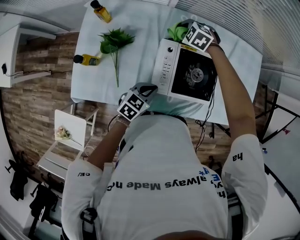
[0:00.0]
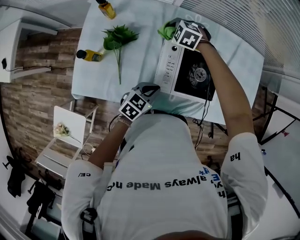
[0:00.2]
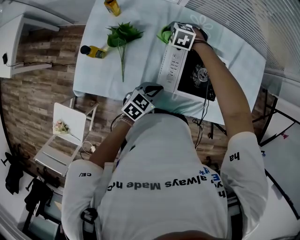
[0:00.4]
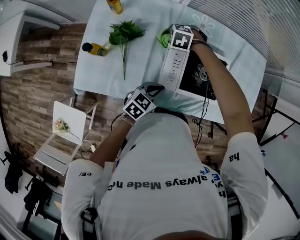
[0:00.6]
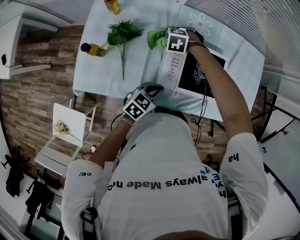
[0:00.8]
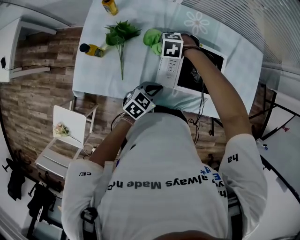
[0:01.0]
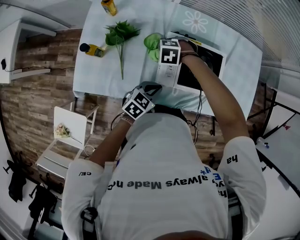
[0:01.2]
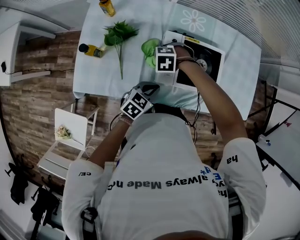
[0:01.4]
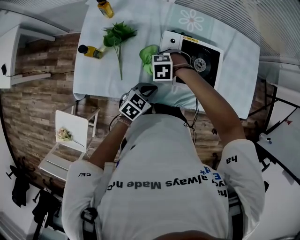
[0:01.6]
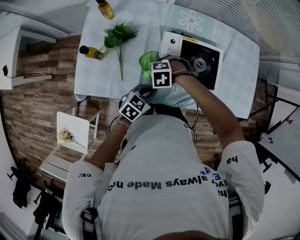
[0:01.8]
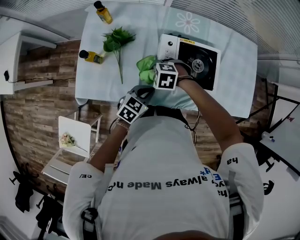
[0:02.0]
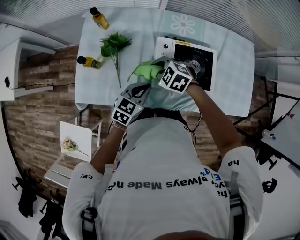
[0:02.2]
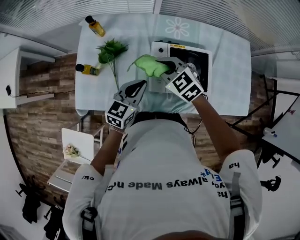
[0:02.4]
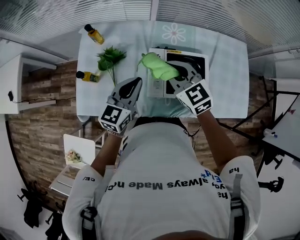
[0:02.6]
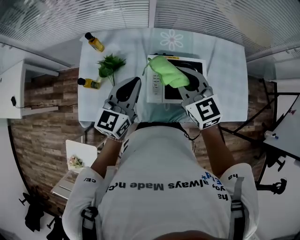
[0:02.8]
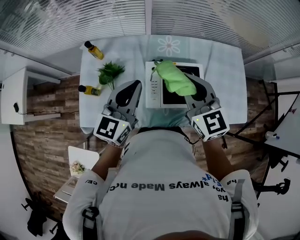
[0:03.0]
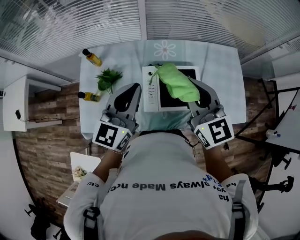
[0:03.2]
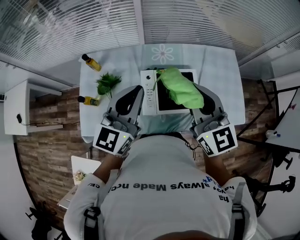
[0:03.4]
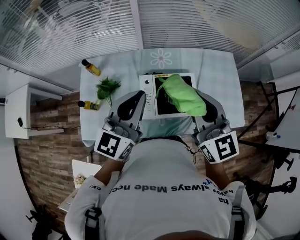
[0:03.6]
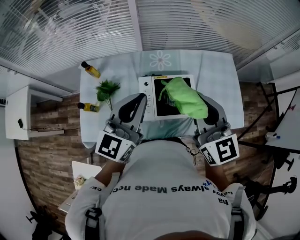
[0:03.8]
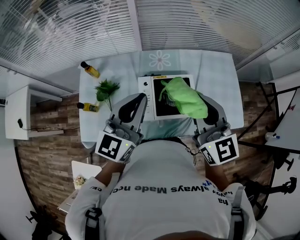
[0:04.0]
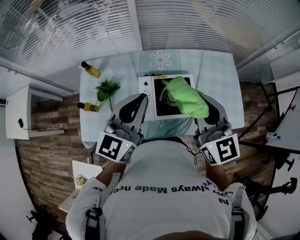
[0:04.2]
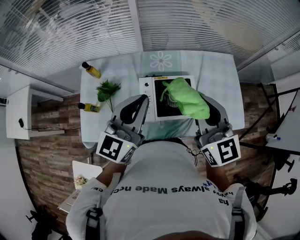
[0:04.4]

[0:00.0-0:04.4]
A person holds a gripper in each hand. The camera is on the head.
0:00.0 to 0:01.4: The right gripper changes place by roughly 25 cm, and rotates roughly 20 degrees.
0:01.4 to 0:03.0: The grippers both shift upward by about 30 cm. The left gripper points its fingers some 30 degrees further upward, while the right gripper points its fingers some 60 degrees further upward.
0:03.0 to 0:04.4: The left gripper travels upward and to the right by approximately 10 cm, while the right gripper travels to the right and upward by some 10 cm.

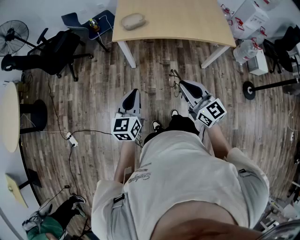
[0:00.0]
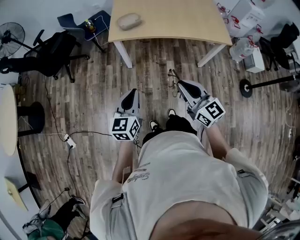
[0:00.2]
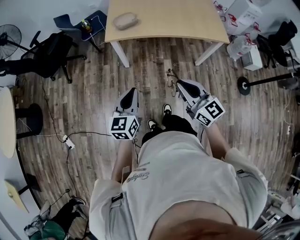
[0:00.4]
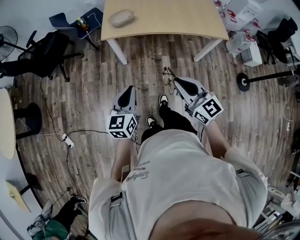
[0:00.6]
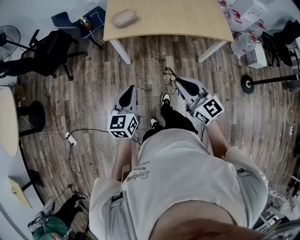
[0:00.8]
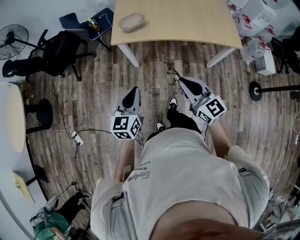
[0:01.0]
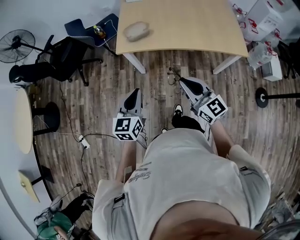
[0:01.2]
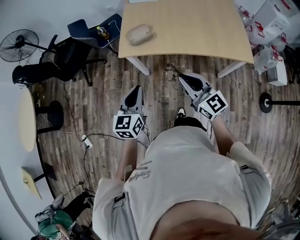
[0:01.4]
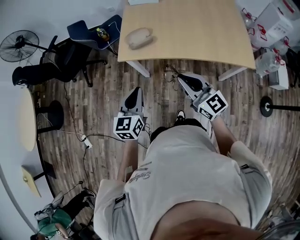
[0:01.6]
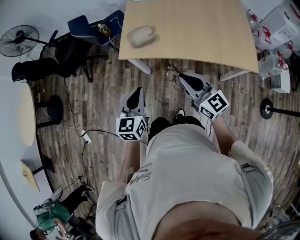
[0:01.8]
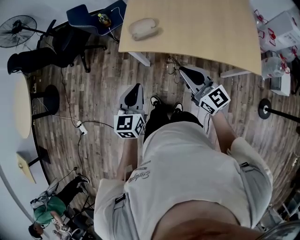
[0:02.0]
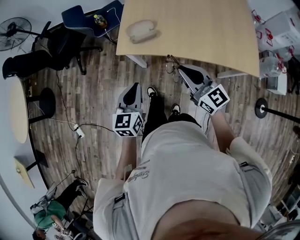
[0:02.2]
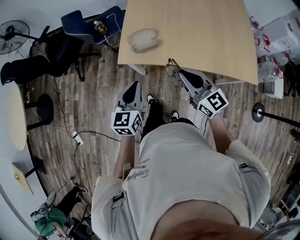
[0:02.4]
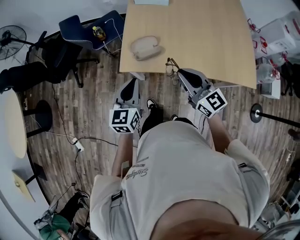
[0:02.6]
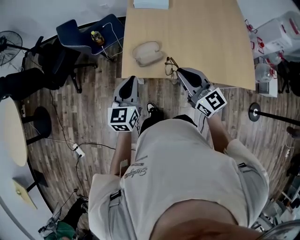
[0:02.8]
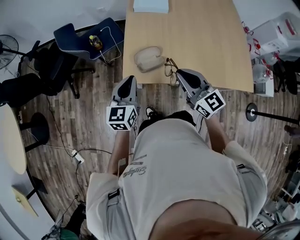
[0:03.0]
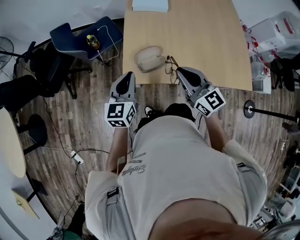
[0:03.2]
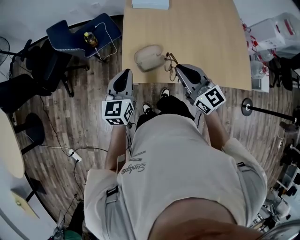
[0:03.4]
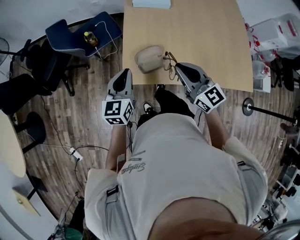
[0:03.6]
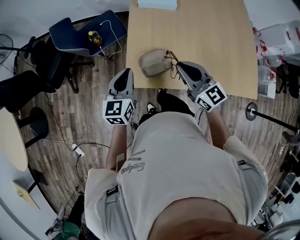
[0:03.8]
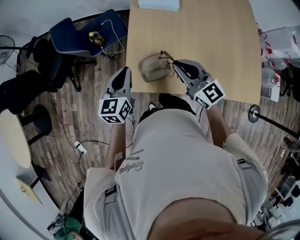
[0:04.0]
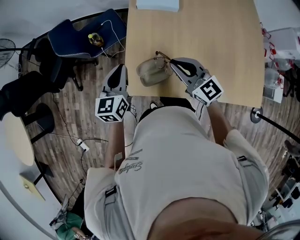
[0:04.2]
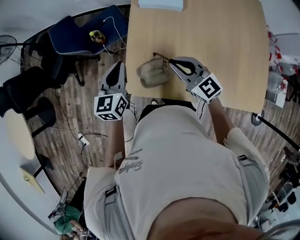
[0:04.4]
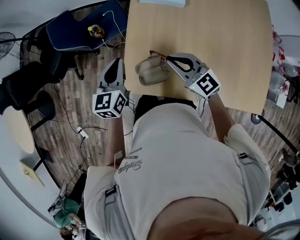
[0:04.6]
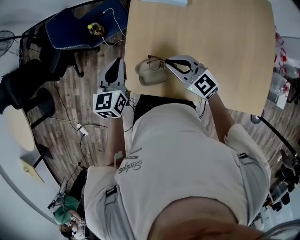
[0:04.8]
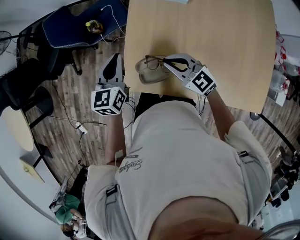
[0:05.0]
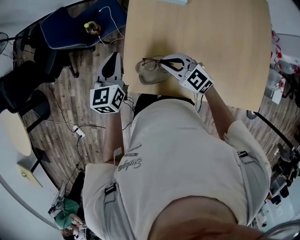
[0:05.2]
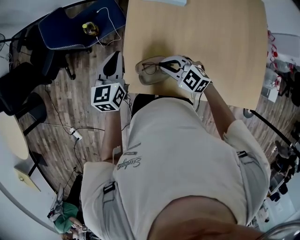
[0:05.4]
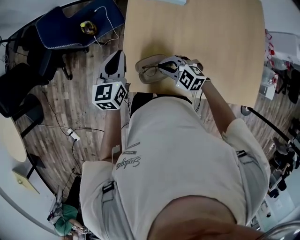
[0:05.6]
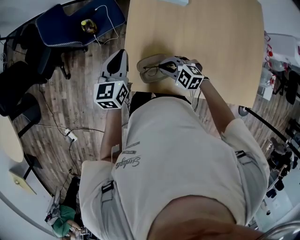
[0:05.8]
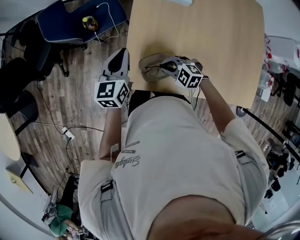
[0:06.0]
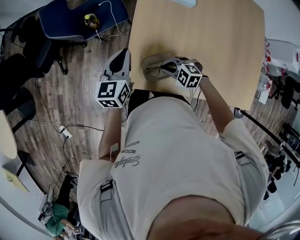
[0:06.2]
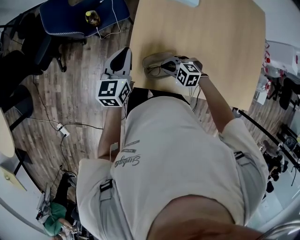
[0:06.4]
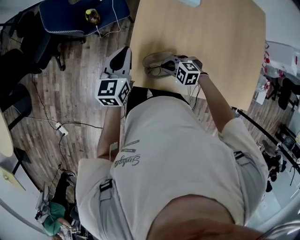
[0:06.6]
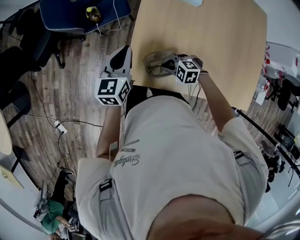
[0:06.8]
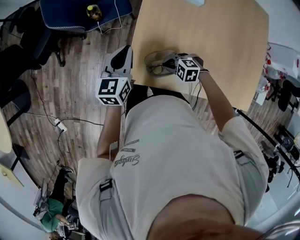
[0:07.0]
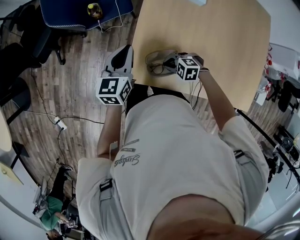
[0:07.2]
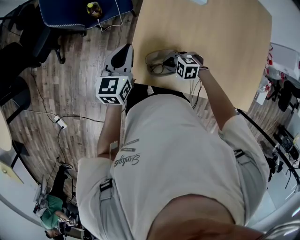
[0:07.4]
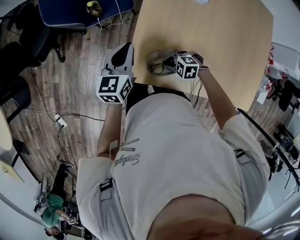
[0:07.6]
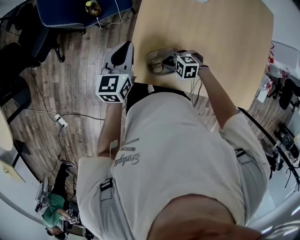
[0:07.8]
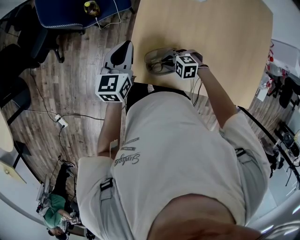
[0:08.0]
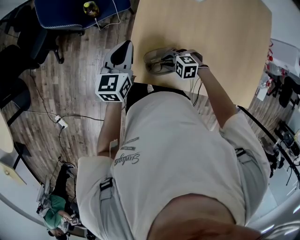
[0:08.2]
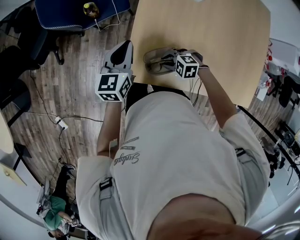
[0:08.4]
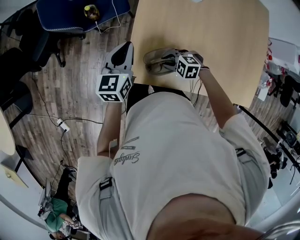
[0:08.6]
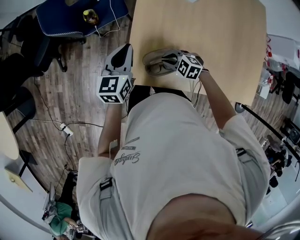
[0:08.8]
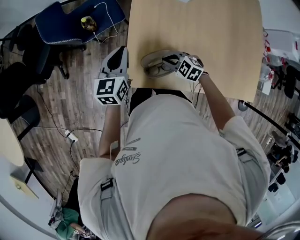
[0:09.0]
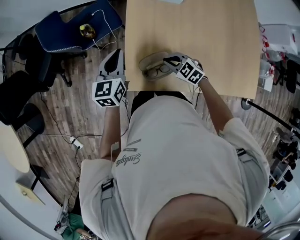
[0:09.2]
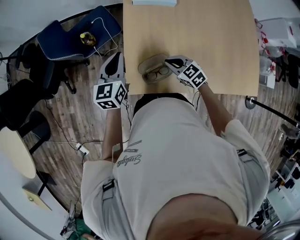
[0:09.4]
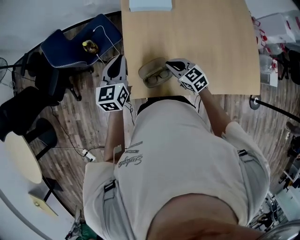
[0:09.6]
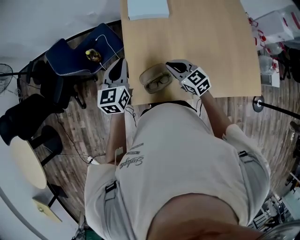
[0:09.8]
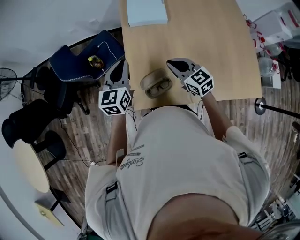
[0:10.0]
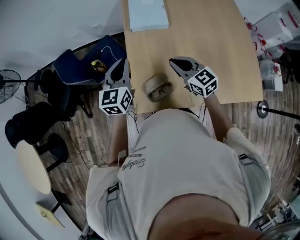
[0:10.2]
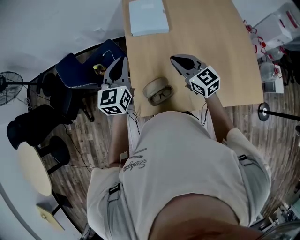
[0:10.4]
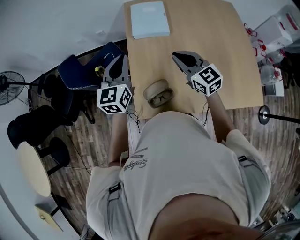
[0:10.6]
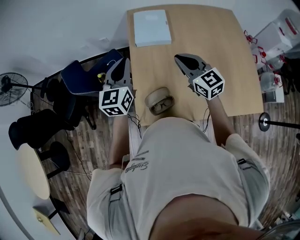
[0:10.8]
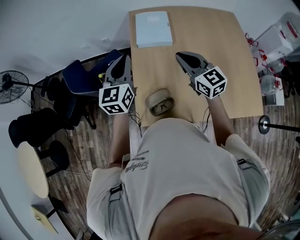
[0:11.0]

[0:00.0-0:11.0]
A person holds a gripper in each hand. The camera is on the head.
0:00.0 to 0:01.6: The right gripper moves forward, some 25 cm. The left gripper travels forward and to the right by approximately 20 cm.
0:01.6 to 0:03.2: The grippers both shift forward by approximately 30 cm.
0:03.2 to 0:04.8: The left gripper goes approximately 20 cm forward. Meanwhile the right gripper travels forward and downward by some 20 cm, and changes its angle by some 30 degrees.
0:04.8 to 0:06.2: The right gripper goes roughly 20 cm downward and to the left, and angles its fingers downward, by about 40 degrees. The left gripper moves roughly 5 cm.
0:06.2 to 0:07.8: The right gripper travels downward by some 5 cm.
0:07.8 to 0:09.4: The right gripper moves upward, roughly 10 cm, and rotates approximately 60 degrees. The left gripper moves approximately 5 cm.
0:09.4 to 0:11.0: The left gripper is displaced upward and to the right by approximately 20 cm; the right gripper heads upward, covering about 25 cm, and tilts its fingers approximately 30 degrees upward.

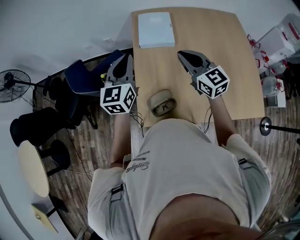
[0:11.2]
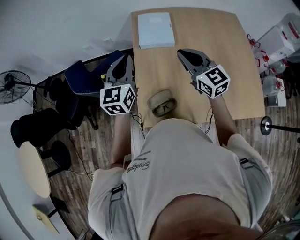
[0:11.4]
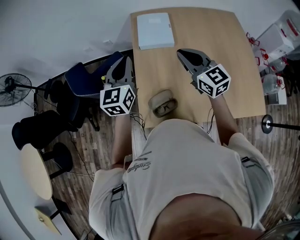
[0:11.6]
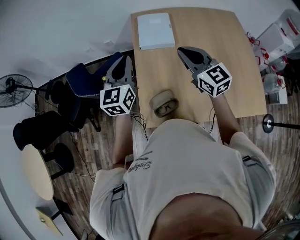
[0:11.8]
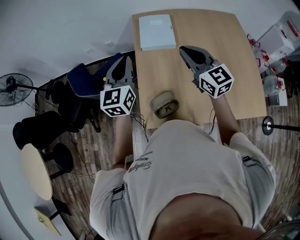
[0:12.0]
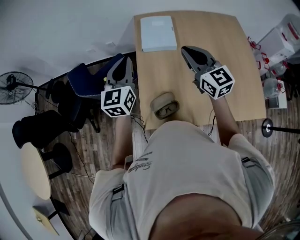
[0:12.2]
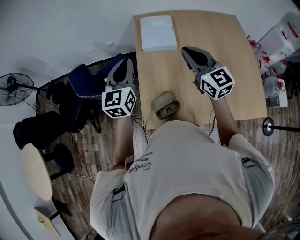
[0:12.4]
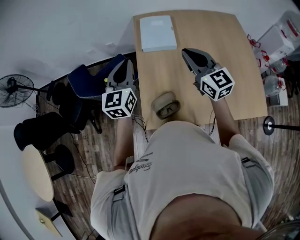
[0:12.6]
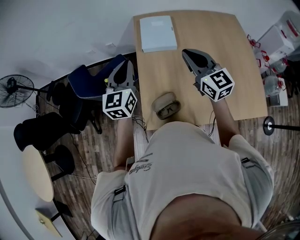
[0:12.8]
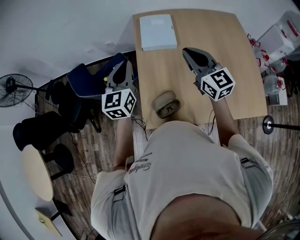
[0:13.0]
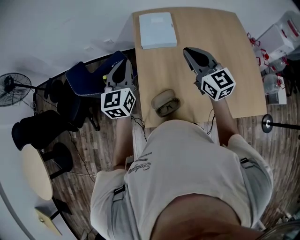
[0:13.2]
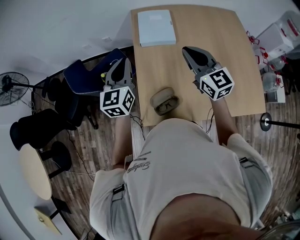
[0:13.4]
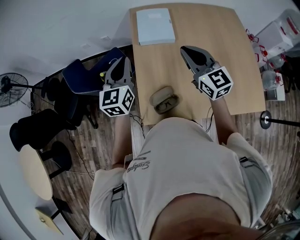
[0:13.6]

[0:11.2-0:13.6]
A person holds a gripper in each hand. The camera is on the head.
0:11.2 to 0:13.6: The grippers stay close to where they were, moving slightly.

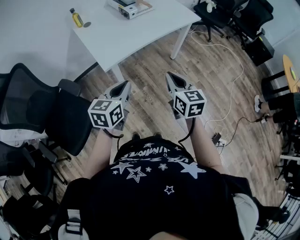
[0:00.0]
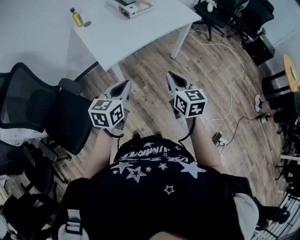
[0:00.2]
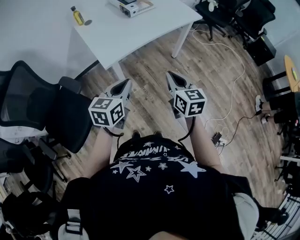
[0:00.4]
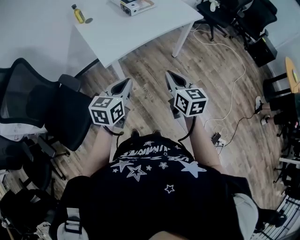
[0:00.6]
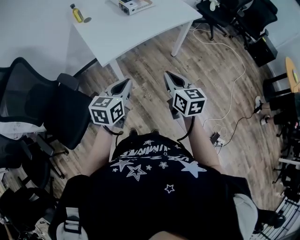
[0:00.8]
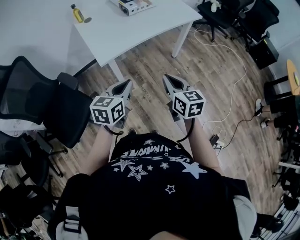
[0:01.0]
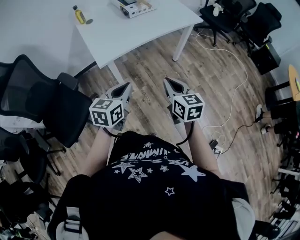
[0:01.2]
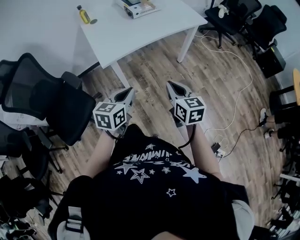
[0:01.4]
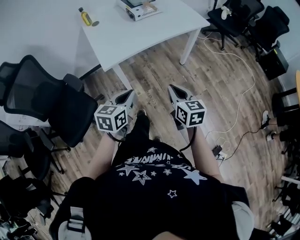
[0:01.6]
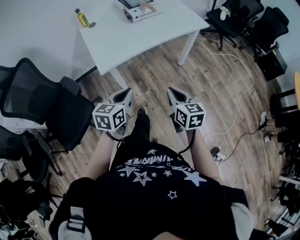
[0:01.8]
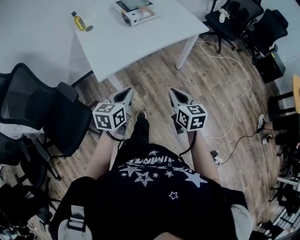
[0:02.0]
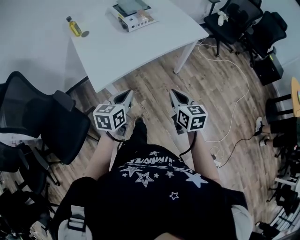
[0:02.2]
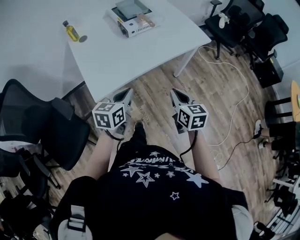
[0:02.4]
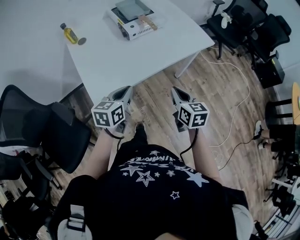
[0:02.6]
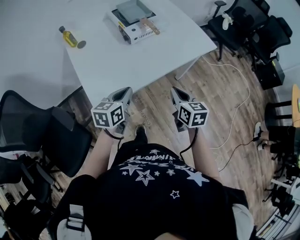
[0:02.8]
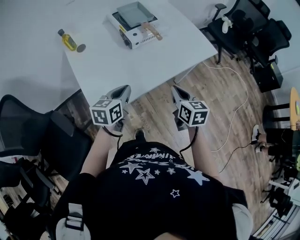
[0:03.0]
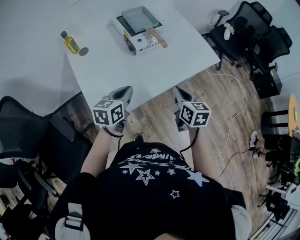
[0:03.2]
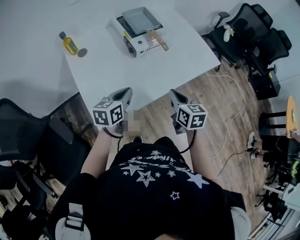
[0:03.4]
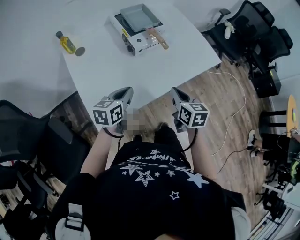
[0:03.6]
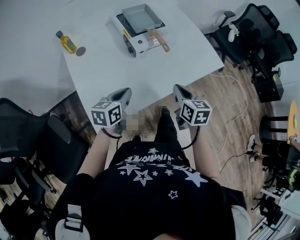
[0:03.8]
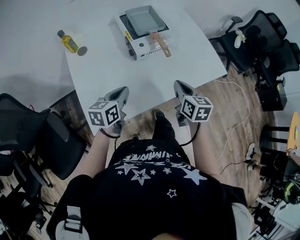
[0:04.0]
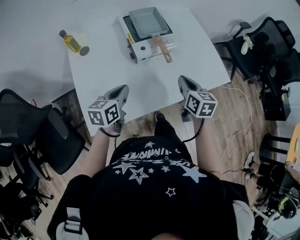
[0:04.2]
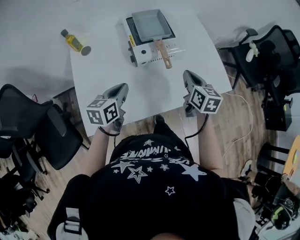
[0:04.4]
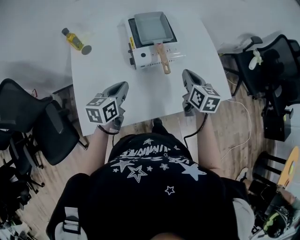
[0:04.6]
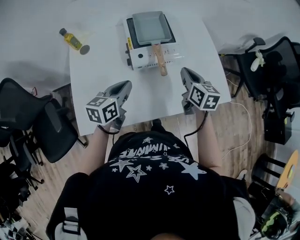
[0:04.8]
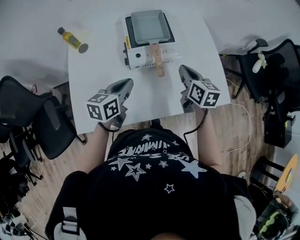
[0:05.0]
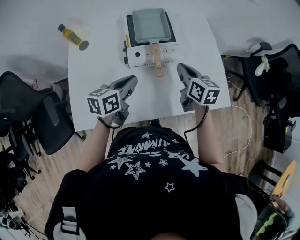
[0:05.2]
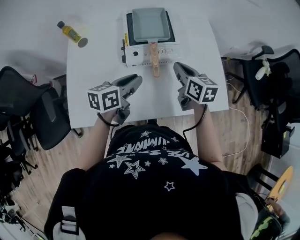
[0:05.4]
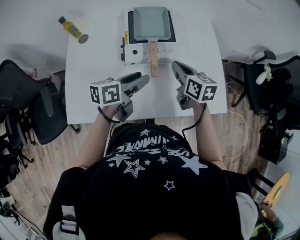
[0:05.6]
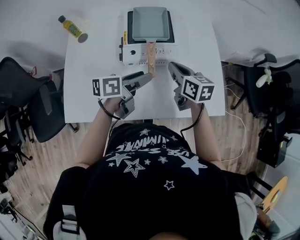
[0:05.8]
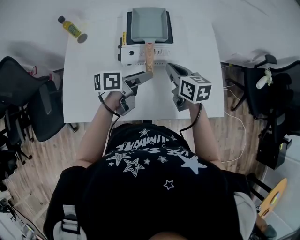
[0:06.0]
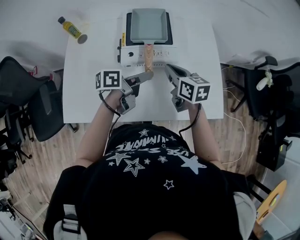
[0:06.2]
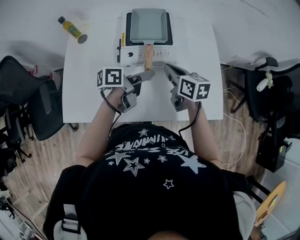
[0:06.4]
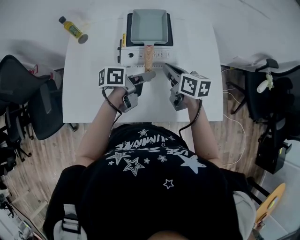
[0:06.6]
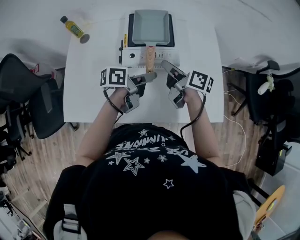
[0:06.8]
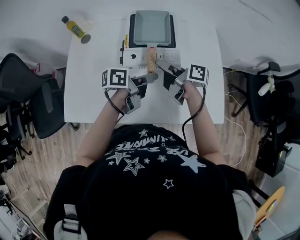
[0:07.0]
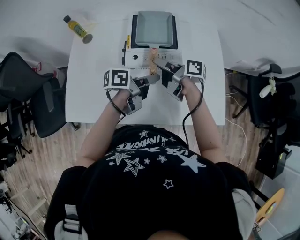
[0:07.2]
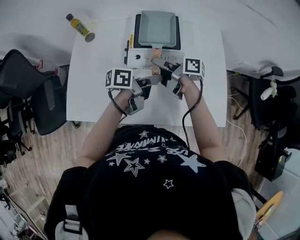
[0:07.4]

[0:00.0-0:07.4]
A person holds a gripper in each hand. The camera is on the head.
0:00.0 to 0:01.4: The grippers both shift to the right by about 10 cm.
0:01.4 to 0:03.0: The grippers both shift forward by approximately 35 cm.
0:03.0 to 0:04.4: The right gripper heads forward, covering some 25 cm. The left gripper is displaced forward by about 15 cm.
0:04.4 to 0:06.0: The right gripper is displaced forward by about 10 cm, and swivels some 30 degrees. Meanwhile the left gripper goes roughly 20 cm to the right and forward, changes its angle by some 40 degrees, and opens.
0:06.0 to 0:07.4: The right gripper is displaced to the left by roughly 10 cm, twists about 40 degrees clockwise, seen from behind, and opens its fingers; the left gripper closes up.
